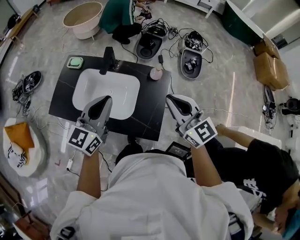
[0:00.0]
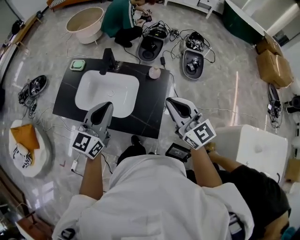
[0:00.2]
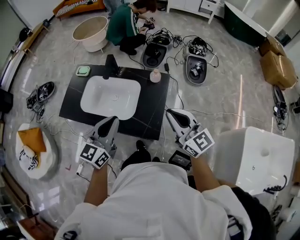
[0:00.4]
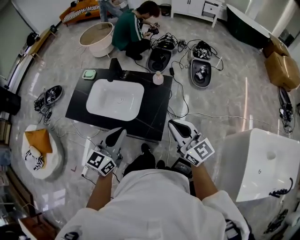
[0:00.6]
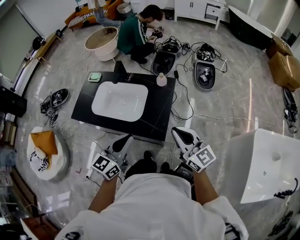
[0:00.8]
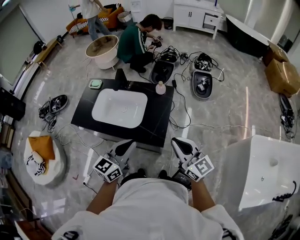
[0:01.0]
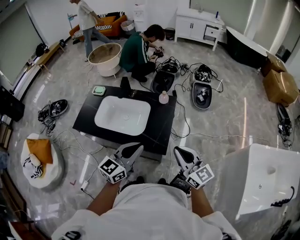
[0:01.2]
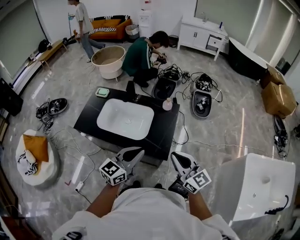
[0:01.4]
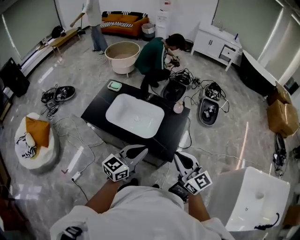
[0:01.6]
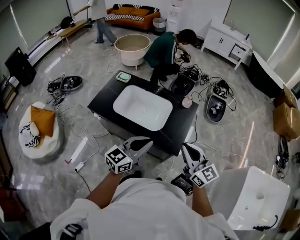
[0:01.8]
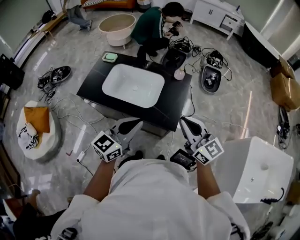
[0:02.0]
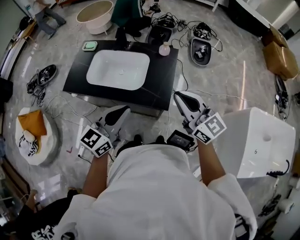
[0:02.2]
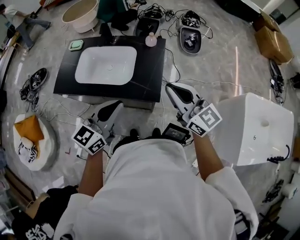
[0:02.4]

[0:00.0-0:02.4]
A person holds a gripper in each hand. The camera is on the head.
0:00.0 to 0:01.2: The left gripper heads backward and to the right, covering about 25 cm. Meanwhile the right gripper goes approximately 20 cm backward.
0:01.2 to 0:02.4: The left gripper heads to the left, covering some 5 cm.

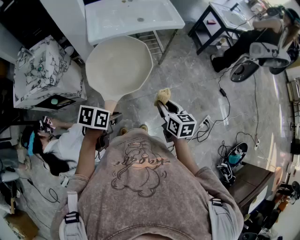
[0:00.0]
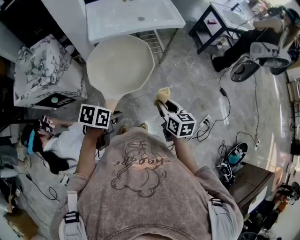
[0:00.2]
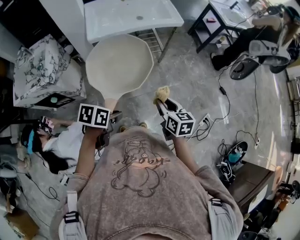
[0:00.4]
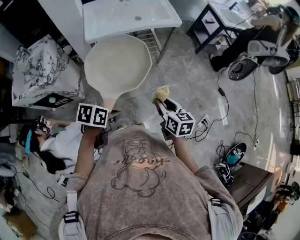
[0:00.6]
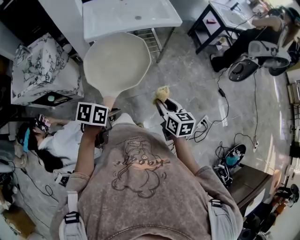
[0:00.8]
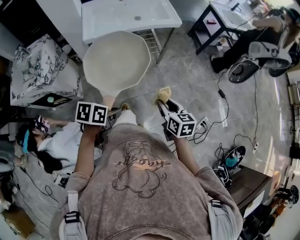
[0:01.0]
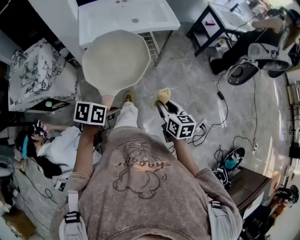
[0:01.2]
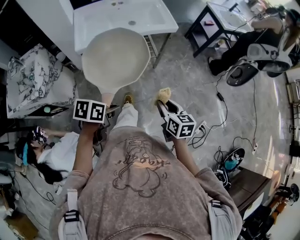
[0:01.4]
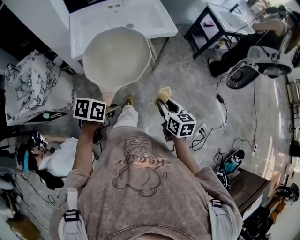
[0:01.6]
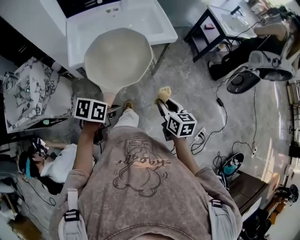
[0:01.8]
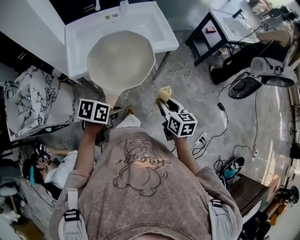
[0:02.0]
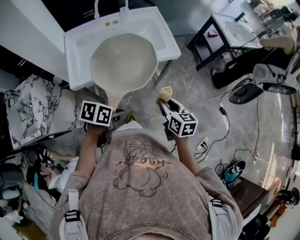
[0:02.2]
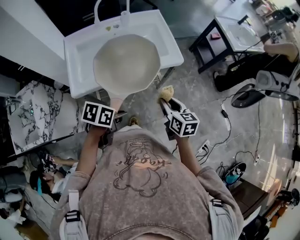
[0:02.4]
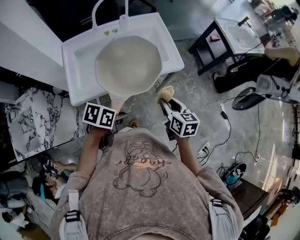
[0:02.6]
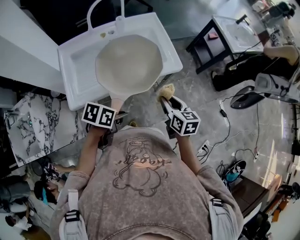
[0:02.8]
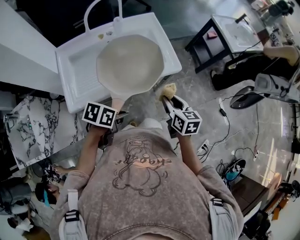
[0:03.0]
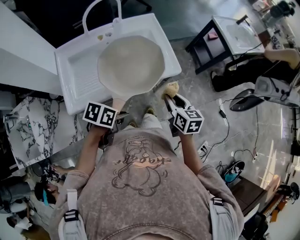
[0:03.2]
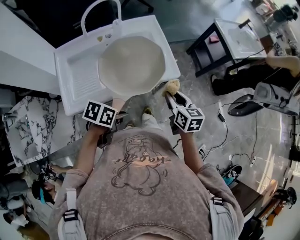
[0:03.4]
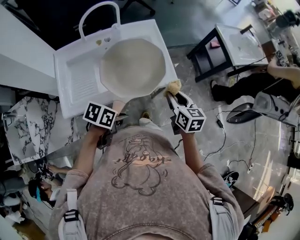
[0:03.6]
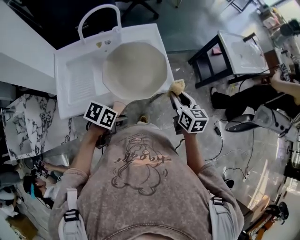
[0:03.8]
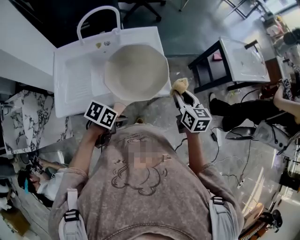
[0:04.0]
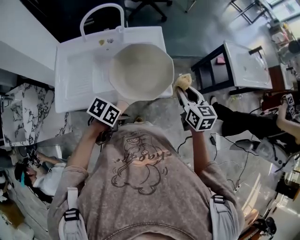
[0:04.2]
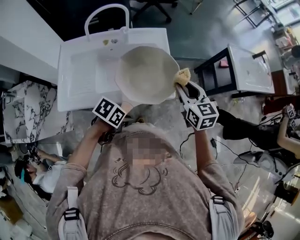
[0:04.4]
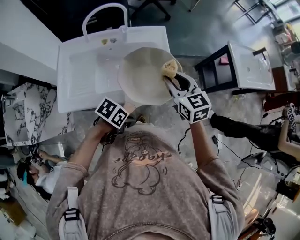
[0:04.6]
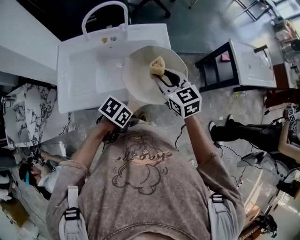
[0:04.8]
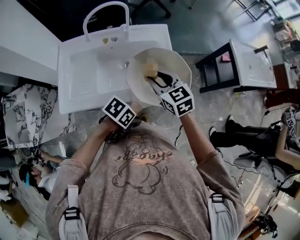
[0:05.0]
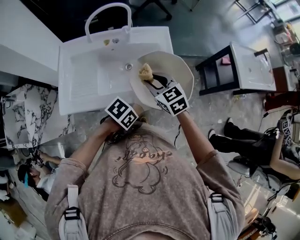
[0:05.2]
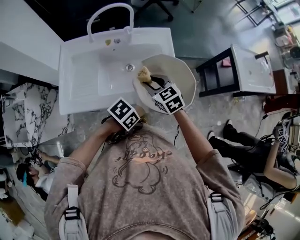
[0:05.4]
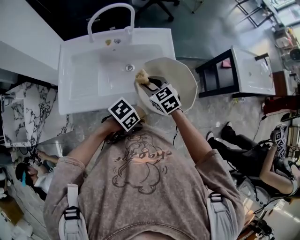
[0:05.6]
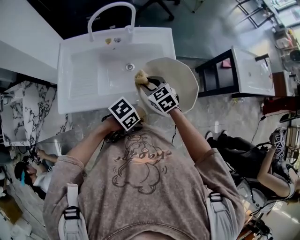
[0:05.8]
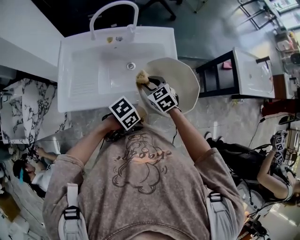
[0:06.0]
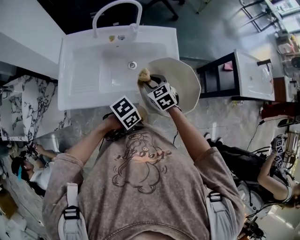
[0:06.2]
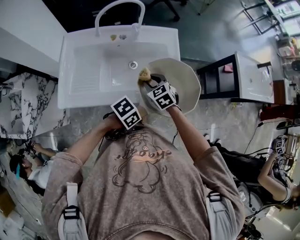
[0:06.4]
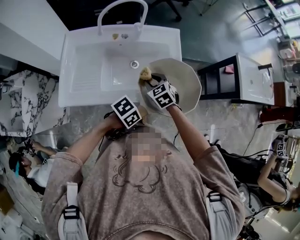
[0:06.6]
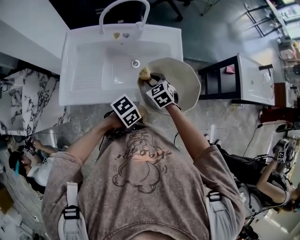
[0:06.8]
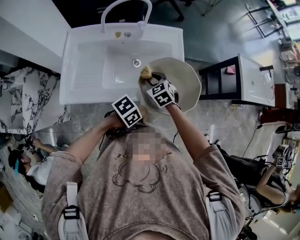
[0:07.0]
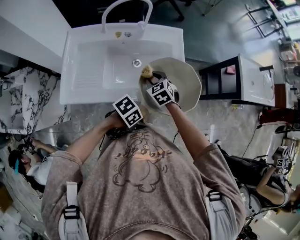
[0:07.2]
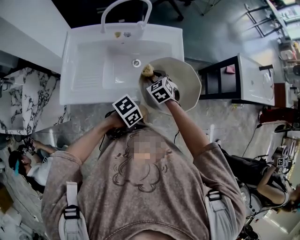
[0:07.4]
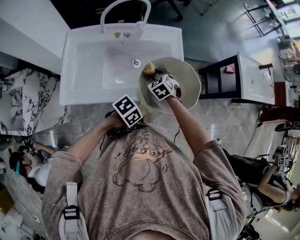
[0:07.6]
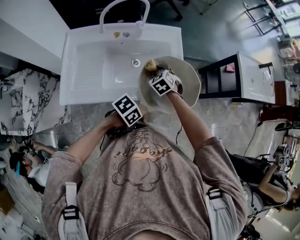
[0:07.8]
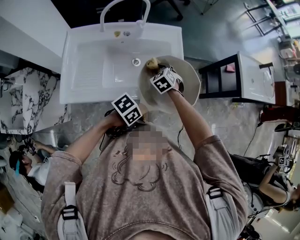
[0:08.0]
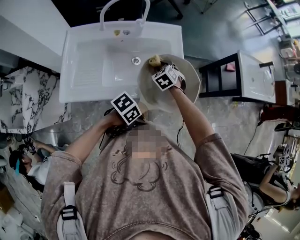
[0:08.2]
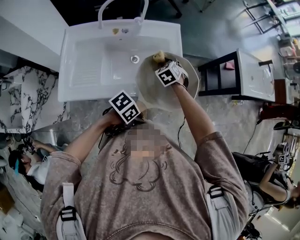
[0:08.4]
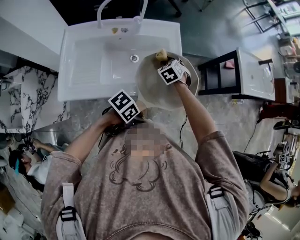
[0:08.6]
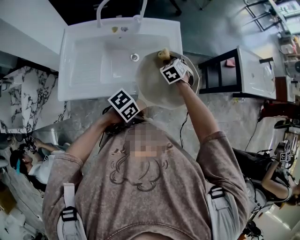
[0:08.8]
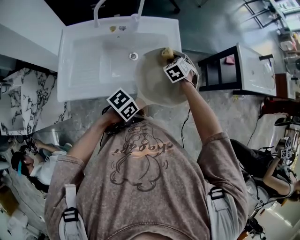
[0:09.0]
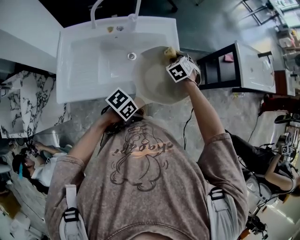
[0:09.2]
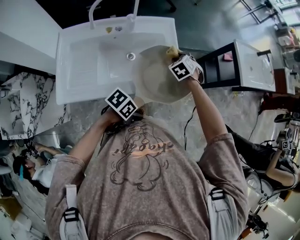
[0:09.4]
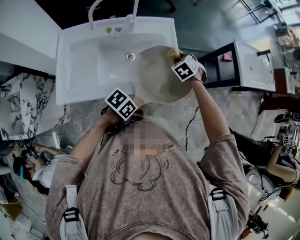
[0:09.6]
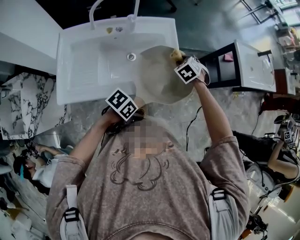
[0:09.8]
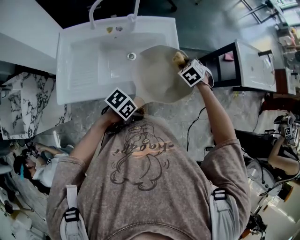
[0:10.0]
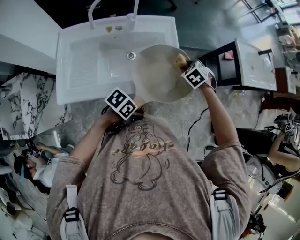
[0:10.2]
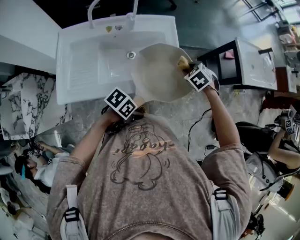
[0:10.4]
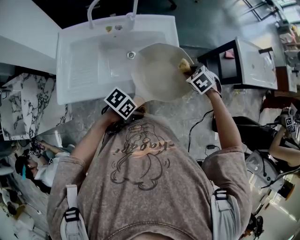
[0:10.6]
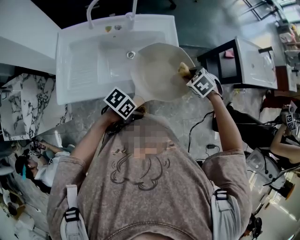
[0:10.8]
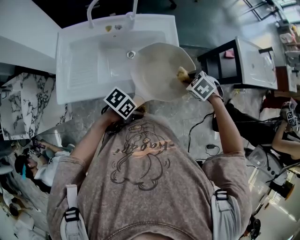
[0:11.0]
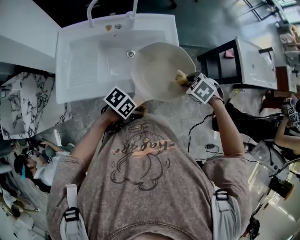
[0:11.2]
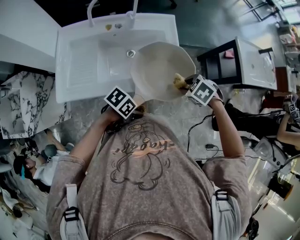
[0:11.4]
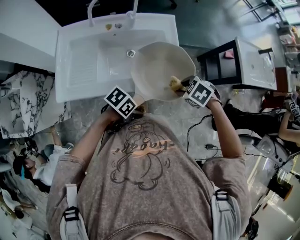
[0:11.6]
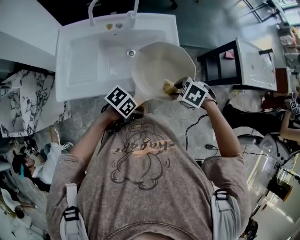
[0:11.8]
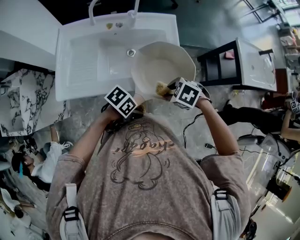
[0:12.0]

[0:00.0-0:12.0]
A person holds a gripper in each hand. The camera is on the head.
0:00.0 to 0:01.6: The right gripper shifts by some 15 cm.
0:01.6 to 0:03.0: The right gripper changes place by approximately 30 cm.
0:03.0 to 0:04.4: The right gripper shifts by approximately 25 cm, and rotates roughly 30 degrees.
0:04.4 to 0:06.0: The right gripper moves approximately 25 cm, and rotates roughly 30 degrees.
0:06.0 to 0:07.6: The right gripper goes about 5 cm downward.
0:07.6 to 0:09.0: The right gripper moves roughly 10 cm.
0:09.0 to 0:10.4: The right gripper ends up some 10 cm from where it was.
0:10.4 to 0:12.0: The right gripper changes place by some 20 cm, and turns by some 30 degrees.

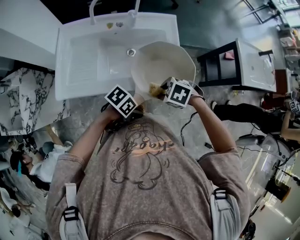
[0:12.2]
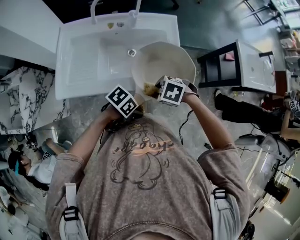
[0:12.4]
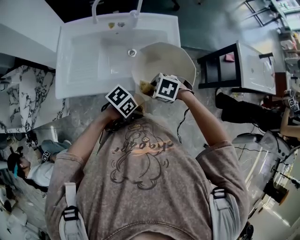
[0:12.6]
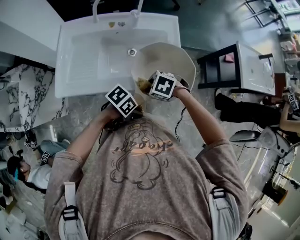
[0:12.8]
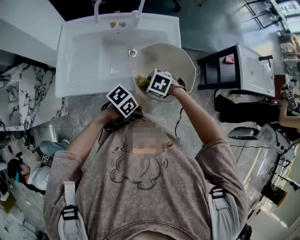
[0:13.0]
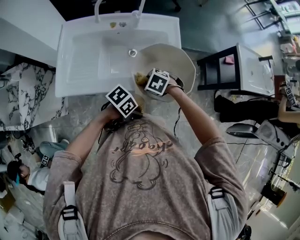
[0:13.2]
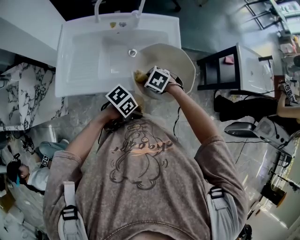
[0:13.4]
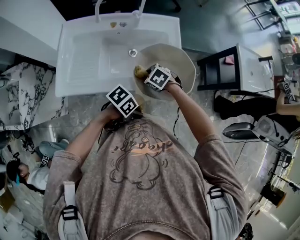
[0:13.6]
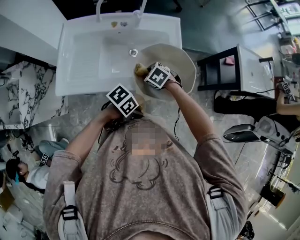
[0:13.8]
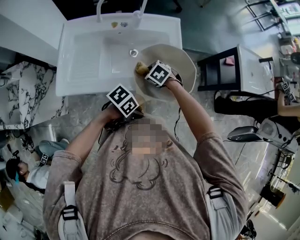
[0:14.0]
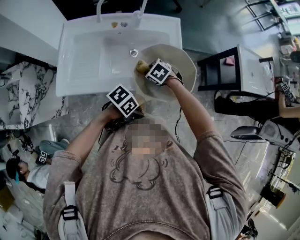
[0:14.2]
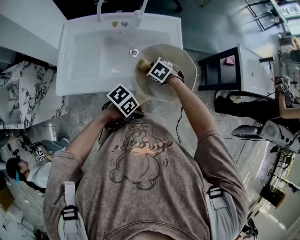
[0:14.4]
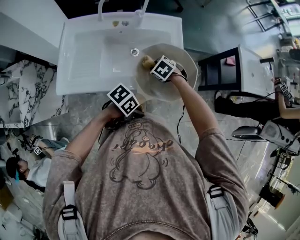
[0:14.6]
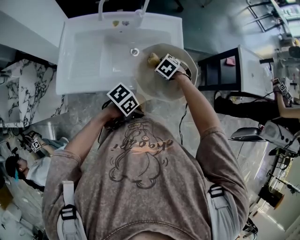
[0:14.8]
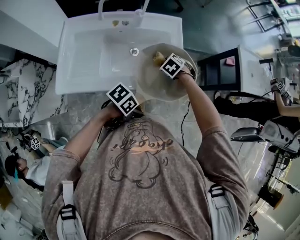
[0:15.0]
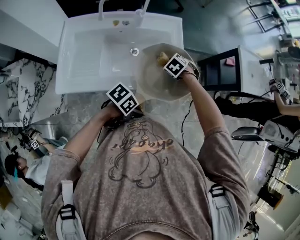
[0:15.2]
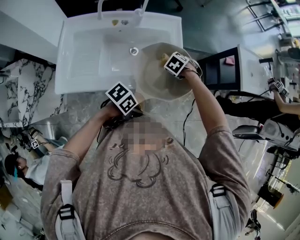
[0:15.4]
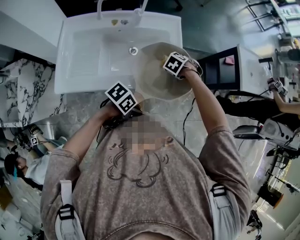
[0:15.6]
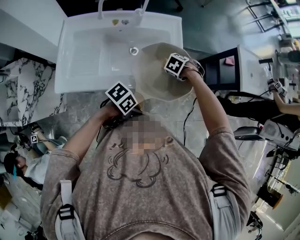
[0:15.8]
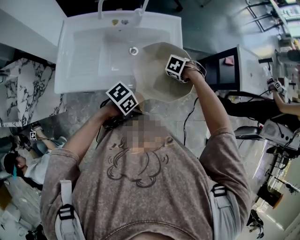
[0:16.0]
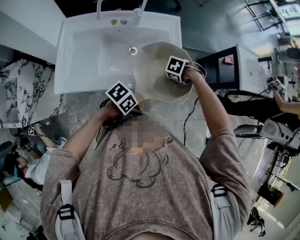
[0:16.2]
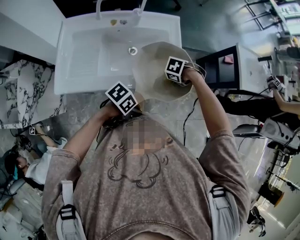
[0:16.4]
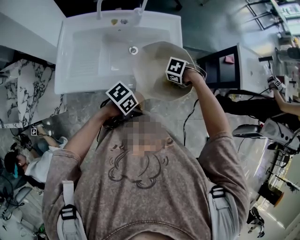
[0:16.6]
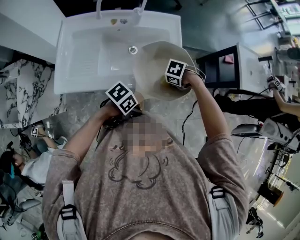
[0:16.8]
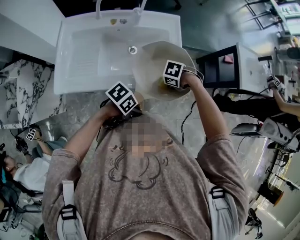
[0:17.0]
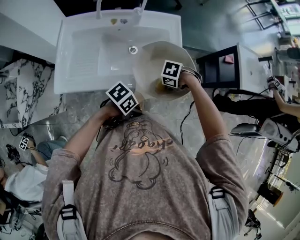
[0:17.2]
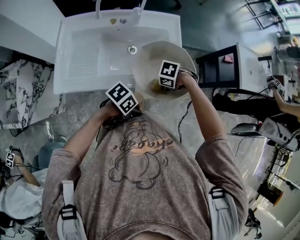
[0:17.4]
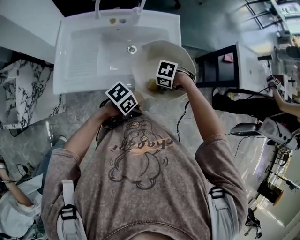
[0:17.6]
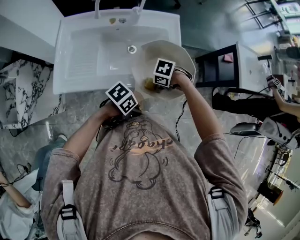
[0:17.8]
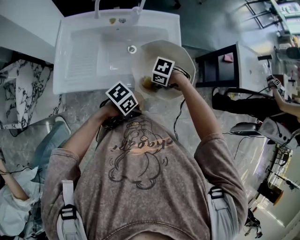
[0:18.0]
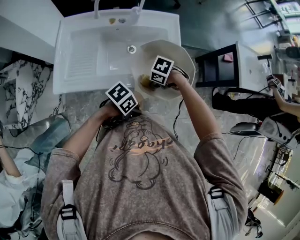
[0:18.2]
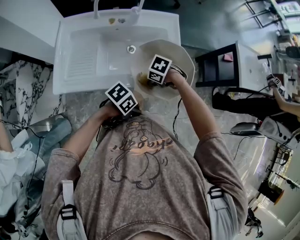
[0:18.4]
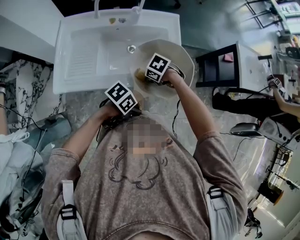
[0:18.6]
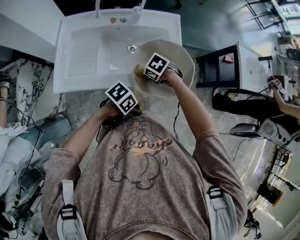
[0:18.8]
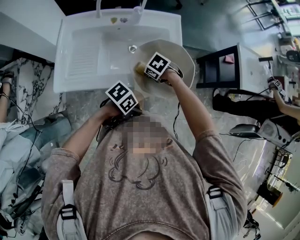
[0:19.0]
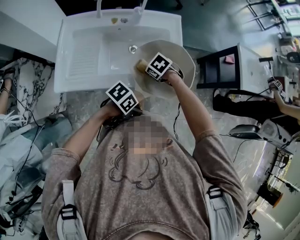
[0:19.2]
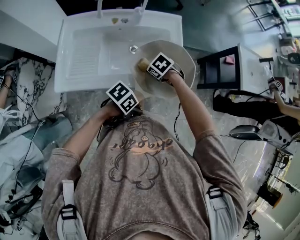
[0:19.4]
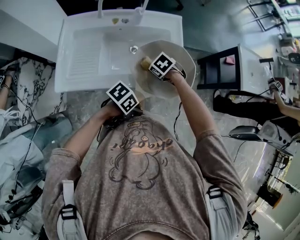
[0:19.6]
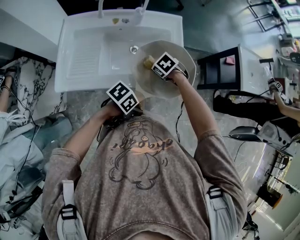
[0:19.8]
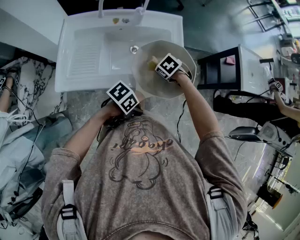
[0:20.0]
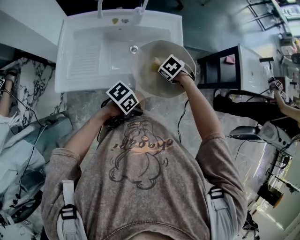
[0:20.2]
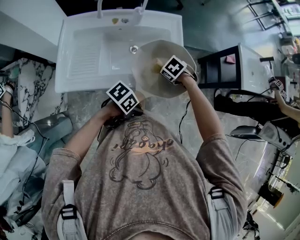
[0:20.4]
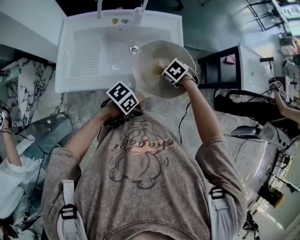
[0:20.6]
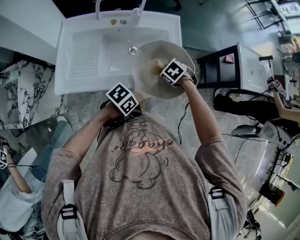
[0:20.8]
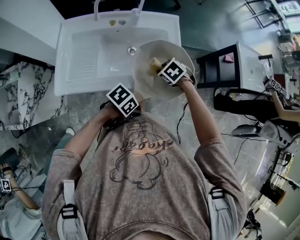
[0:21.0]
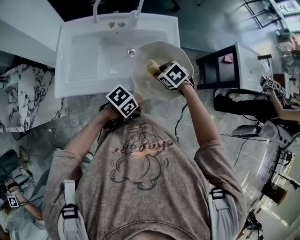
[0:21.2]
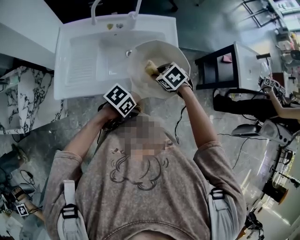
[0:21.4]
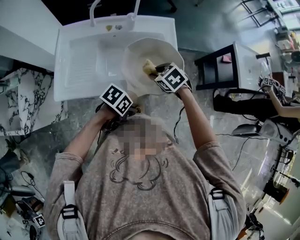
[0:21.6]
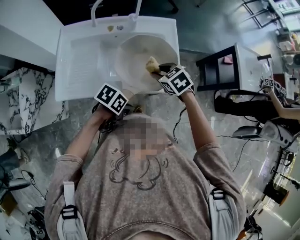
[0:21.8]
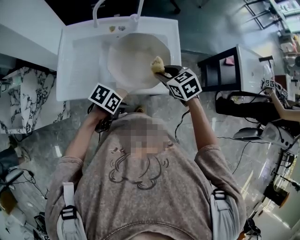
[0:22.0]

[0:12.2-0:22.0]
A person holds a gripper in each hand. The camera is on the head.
0:12.2 to 0:13.6: The right gripper moves some 15 cm.
0:13.6 to 0:15.0: The right gripper ends up approximately 15 cm from where it was.
0:15.0 to 0:16.4: The right gripper changes place by some 10 cm, and swivels some 30 degrees.
0:16.4 to 0:17.8: The right gripper ends up some 10 cm from where it was.
0:17.8 to 0:19.2: The right gripper ends up roughly 10 cm from where it was, and swivels about 30 degrees.
0:19.2 to 0:20.6: The right gripper changes place by some 10 cm.
0:20.6 to 0:22.0: The right gripper shifts some 10 cm upward, and angles its fingers upward, by about 30 degrees.
